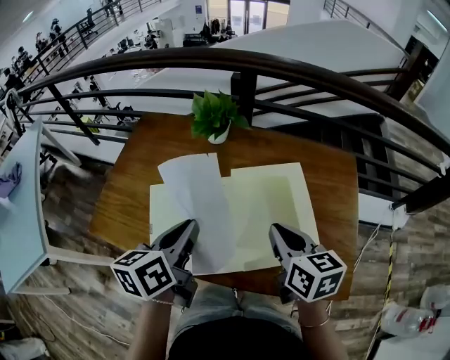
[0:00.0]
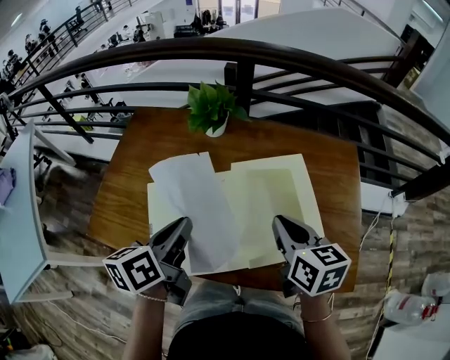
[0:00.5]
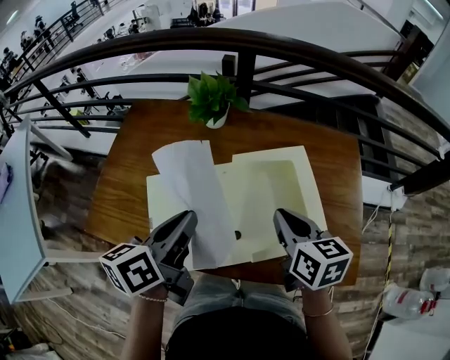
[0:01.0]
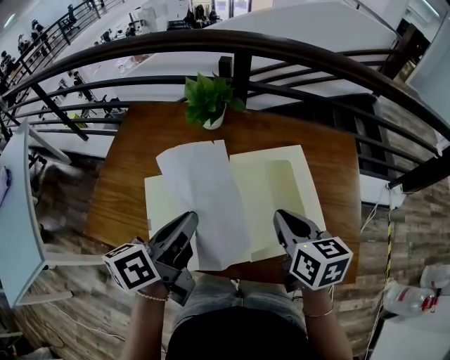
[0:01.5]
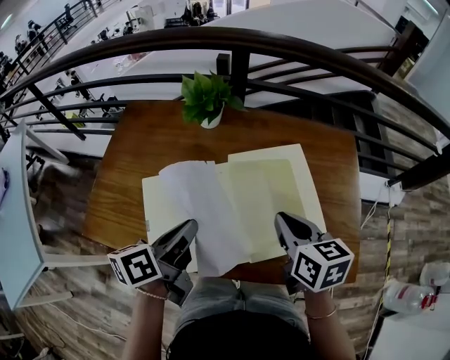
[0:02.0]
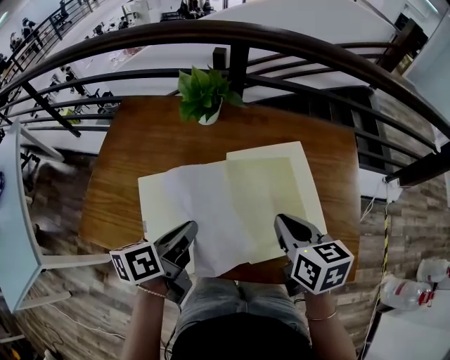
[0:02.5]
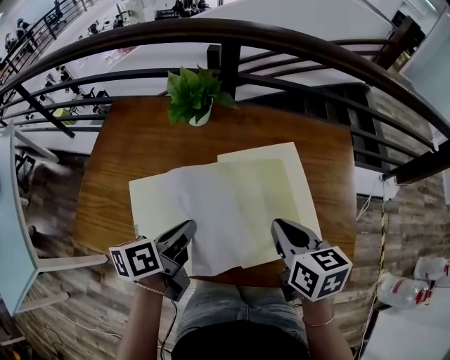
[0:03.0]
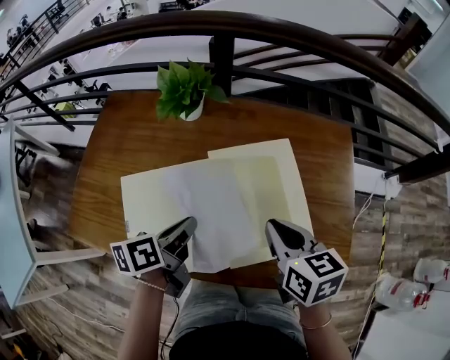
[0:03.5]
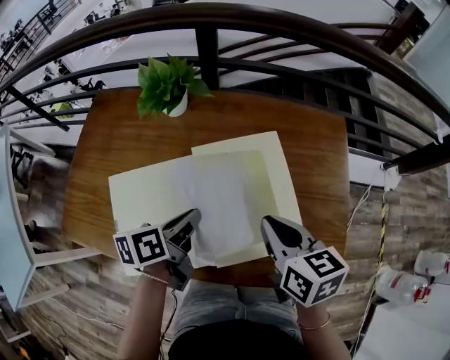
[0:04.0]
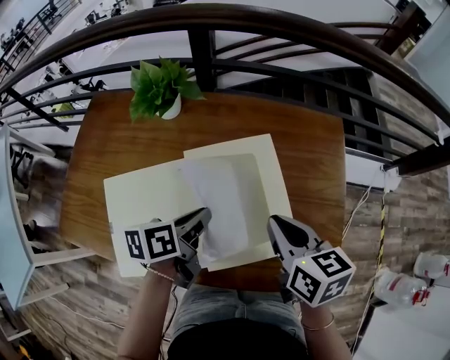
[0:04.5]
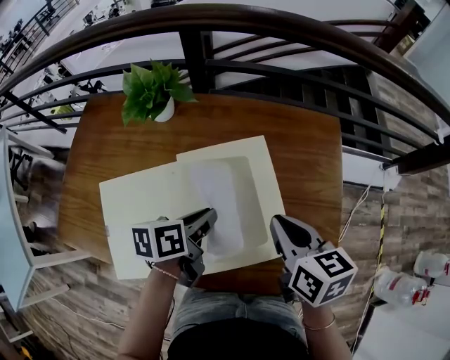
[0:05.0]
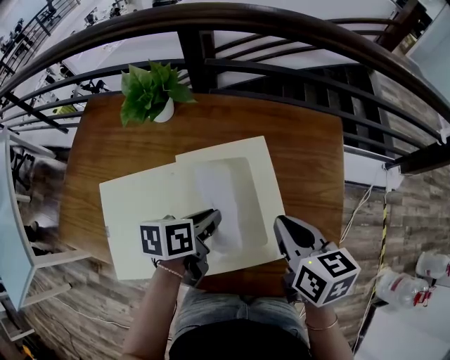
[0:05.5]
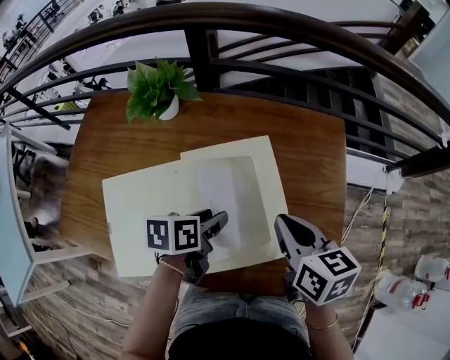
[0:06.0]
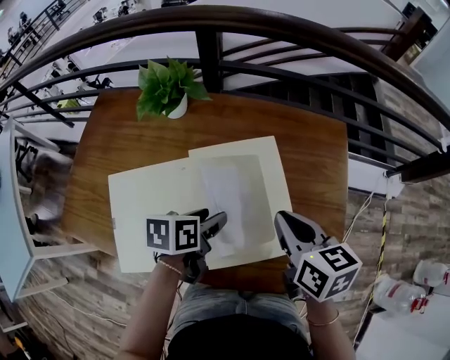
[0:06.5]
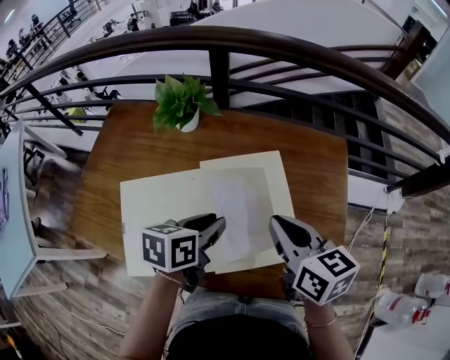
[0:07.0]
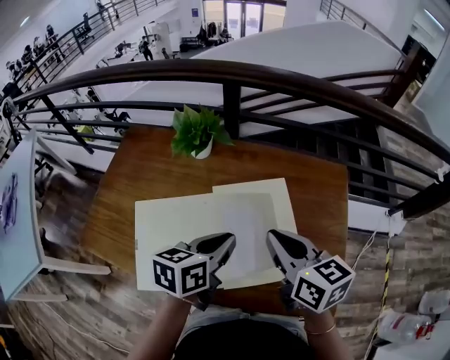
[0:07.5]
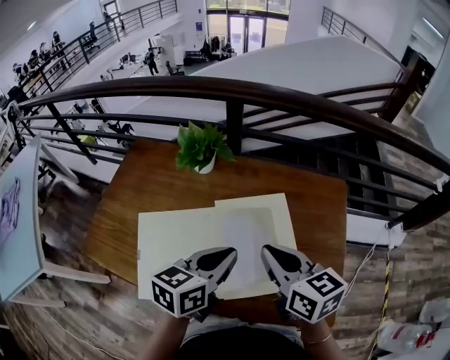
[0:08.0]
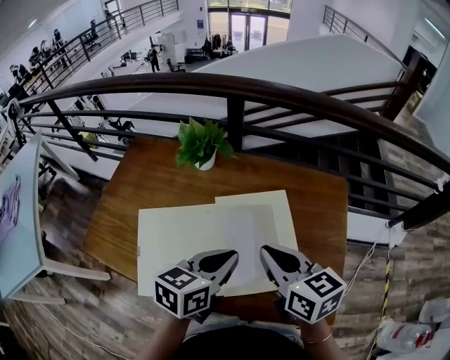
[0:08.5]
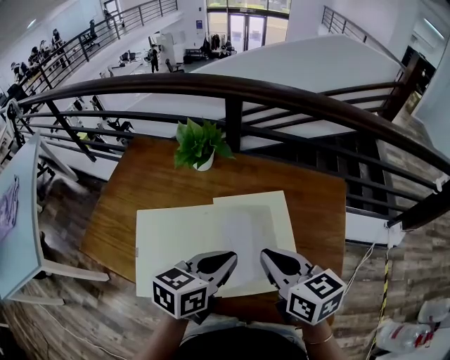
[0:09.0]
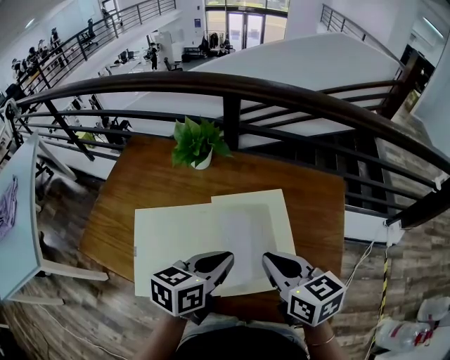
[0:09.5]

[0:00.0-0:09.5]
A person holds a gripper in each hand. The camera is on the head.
0:02.0 to 0:04.0: The right gripper moves to the right, about 5 cm, while the left gripper moves to the right, downward and forward, some 15 cm.
0:04.0 to 0:05.5: Both grippers move to the right, approximately 10 cm.
0:05.5 to 0:07.5: The left gripper goes approximately 10 cm upward, rotates about 20 degrees, and opens, then closes again, while the right gripper is displaced to the left and upward by roughly 10 cm.
0:07.5 to 0:09.5: The grippers move only a little.

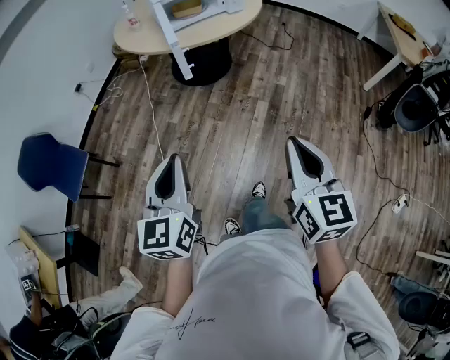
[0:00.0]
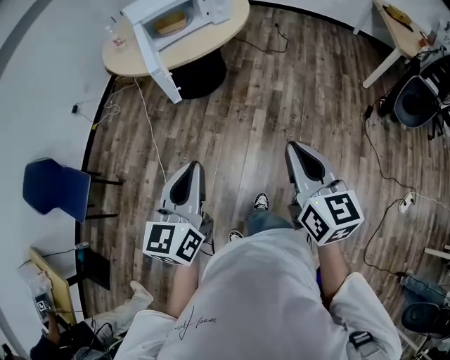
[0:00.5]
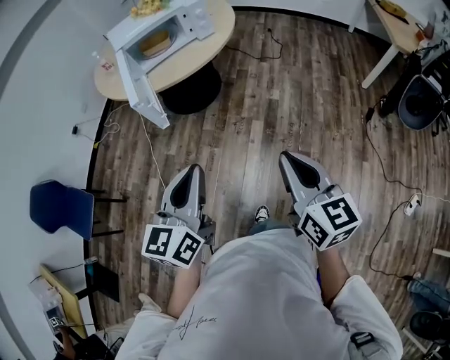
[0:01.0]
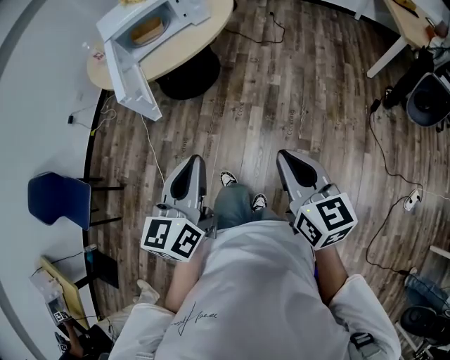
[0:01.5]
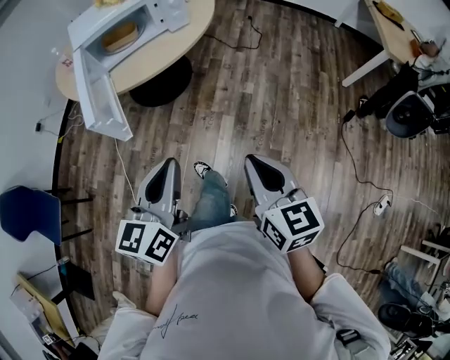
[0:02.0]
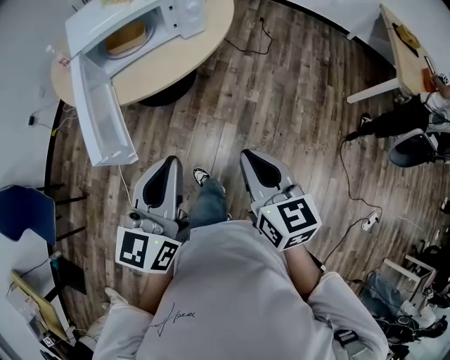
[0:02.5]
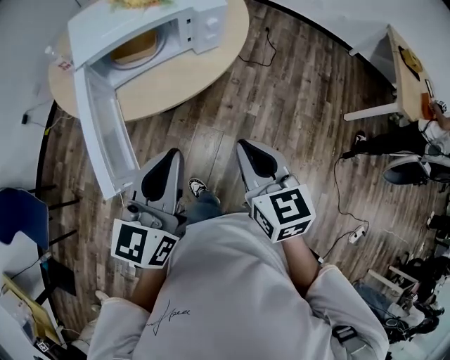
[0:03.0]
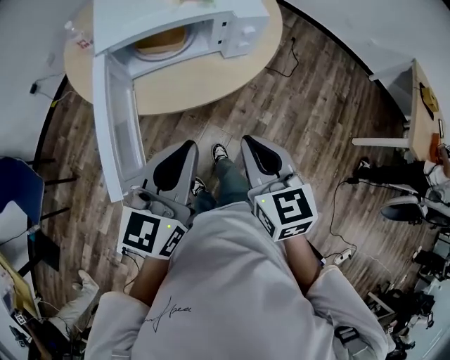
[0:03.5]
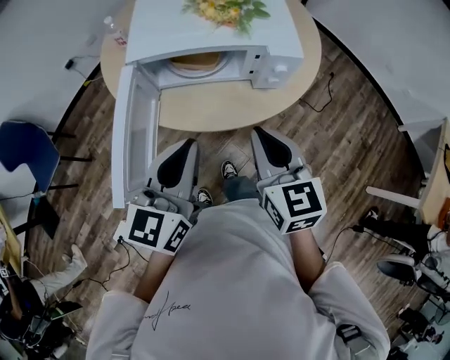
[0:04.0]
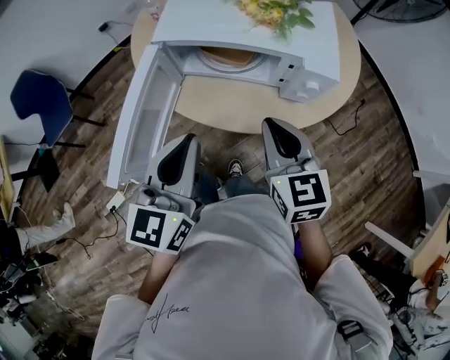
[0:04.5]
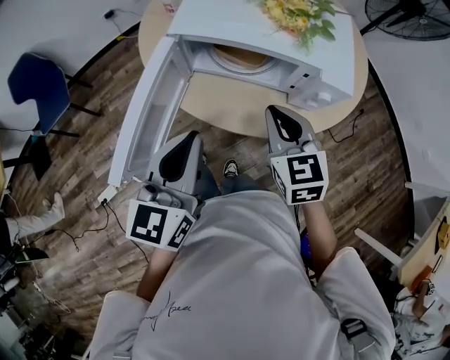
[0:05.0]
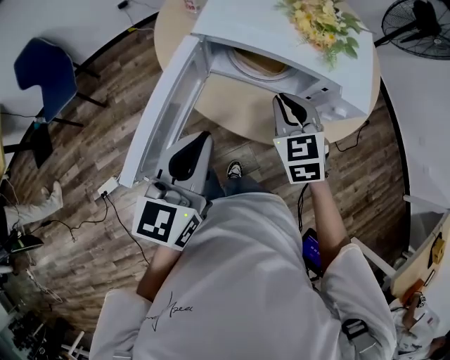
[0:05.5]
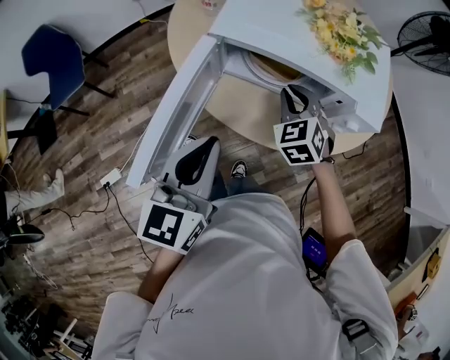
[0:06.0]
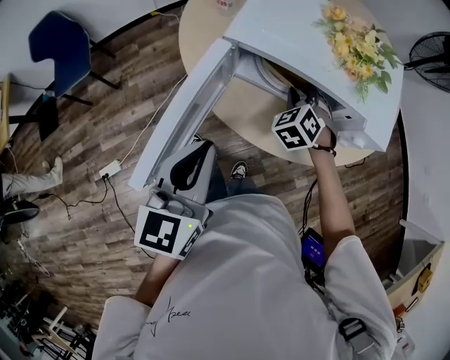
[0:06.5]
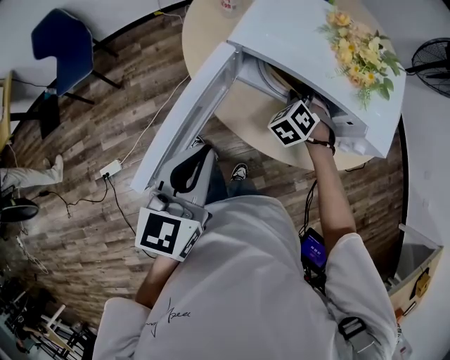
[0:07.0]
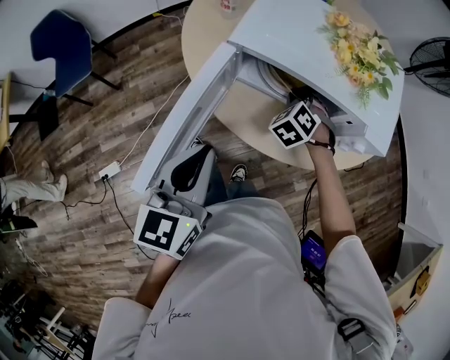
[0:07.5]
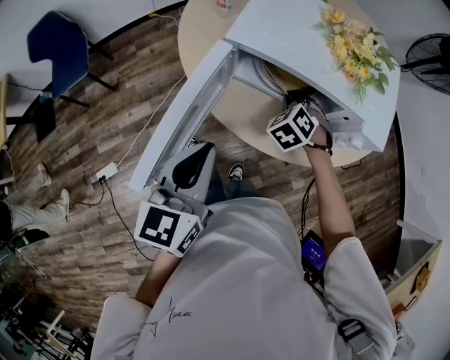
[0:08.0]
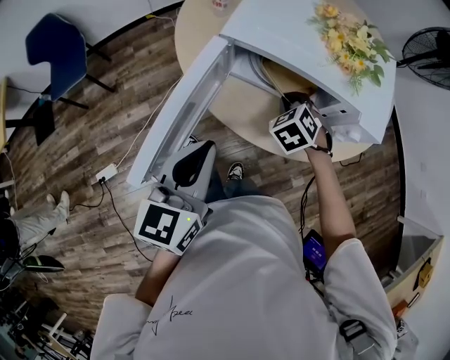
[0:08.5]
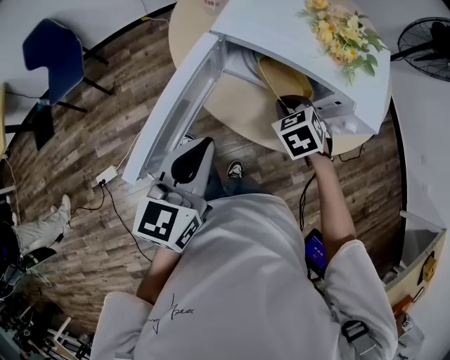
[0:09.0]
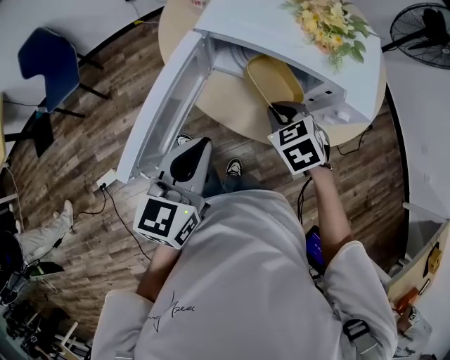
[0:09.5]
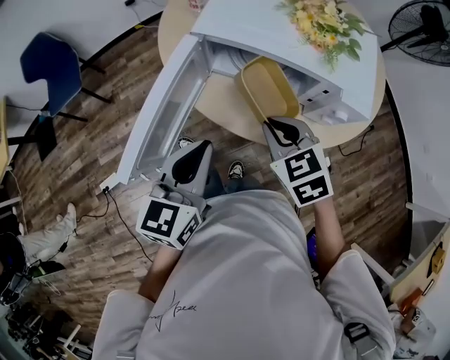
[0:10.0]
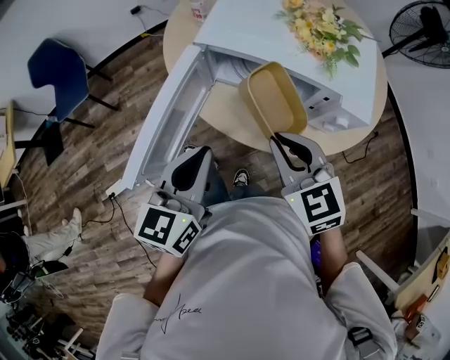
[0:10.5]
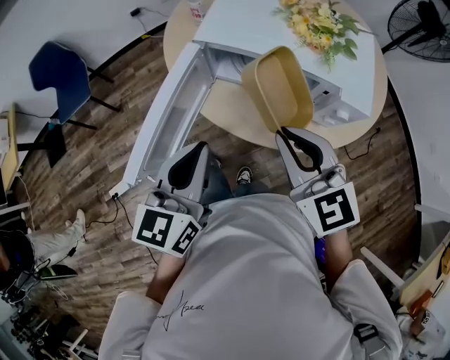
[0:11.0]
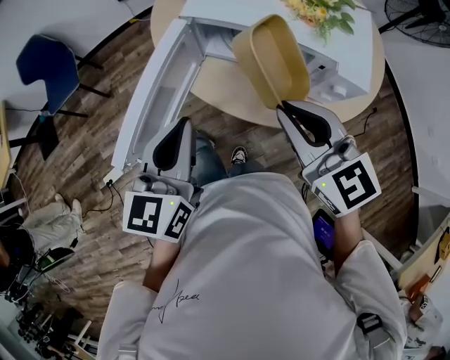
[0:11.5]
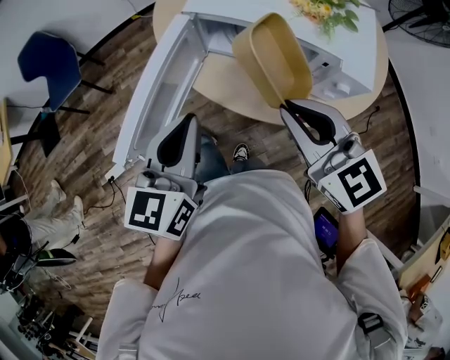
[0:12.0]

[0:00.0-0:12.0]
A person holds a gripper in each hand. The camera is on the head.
0:00.0 to 0:02.0: Both grippers move forward and to the right, roughly 30 cm. The left gripper swivels some 20 degrees.
0:02.0 to 0:04.0: The grippers both shift forward by some 40 cm. The left gripper changes its angle by roughly 20 degrees, while the right gripper rotates about 30 degrees.
0:04.0 to 0:06.0: The right gripper moves forward and downward, about 25 cm, and rotates around the line of its fingers by roughly 40 degrees, counterclockwise from behind. Meanwhile the left gripper shifts about 5 cm to the left, and rotates roughly 20 degrees.
0:06.0 to 0:08.0: The right gripper is displaced downward by about 5 cm, and rotates approximately 20 degrees.
0:08.0 to 0:10.0: The right gripper heads backward and upward, covering about 20 cm, and changes its angle by some 40 degrees. The left gripper changes place by some 5 cm.
0:10.0 to 0:12.0: The right gripper heads upward, covering some 10 cm, and turns by roughly 30 degrees.

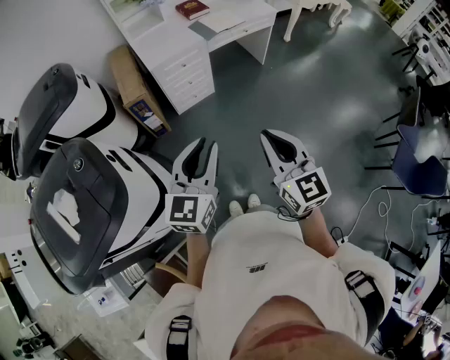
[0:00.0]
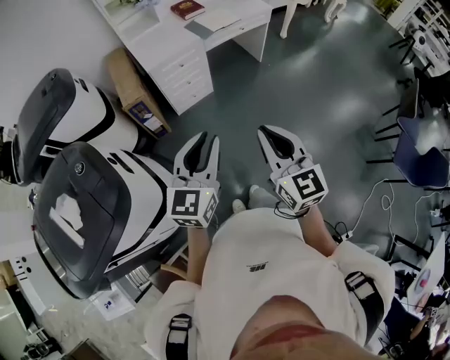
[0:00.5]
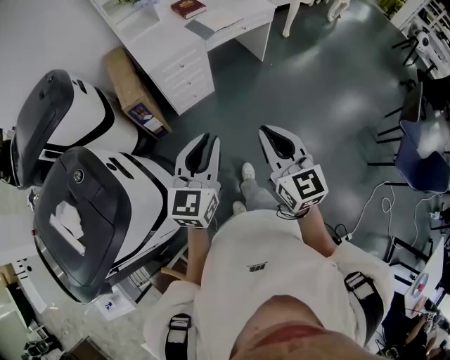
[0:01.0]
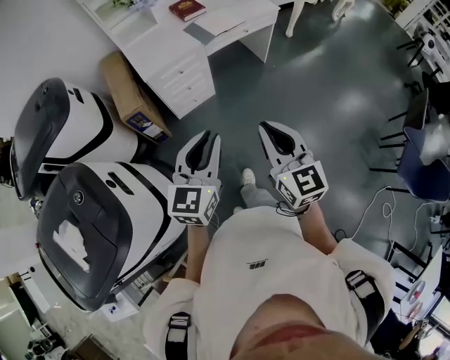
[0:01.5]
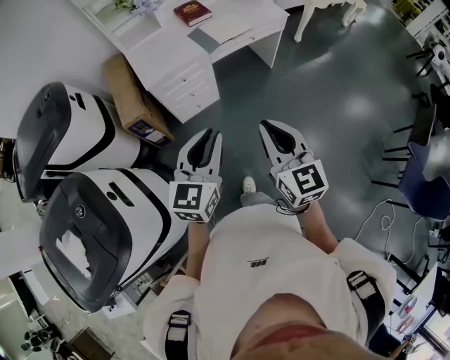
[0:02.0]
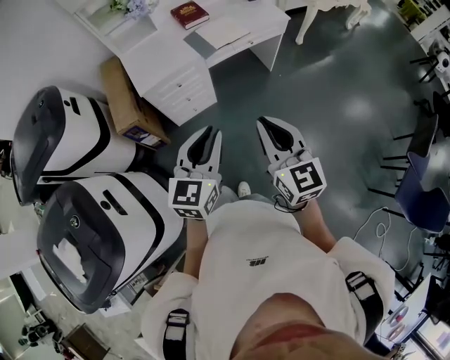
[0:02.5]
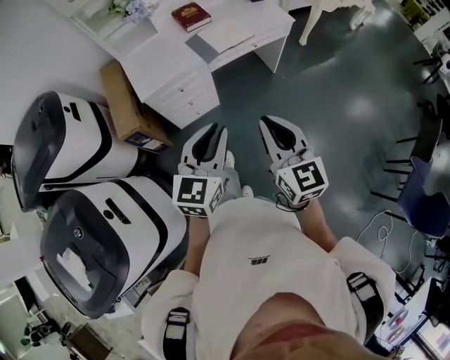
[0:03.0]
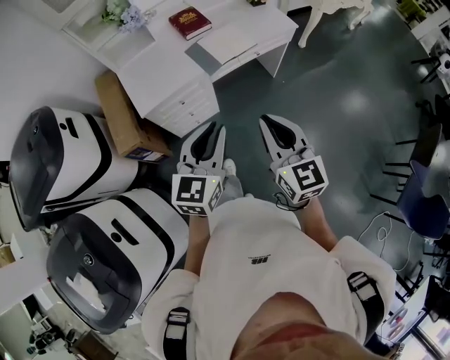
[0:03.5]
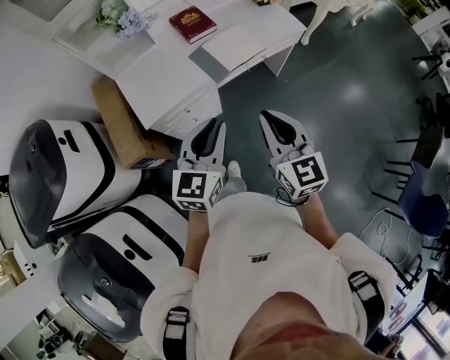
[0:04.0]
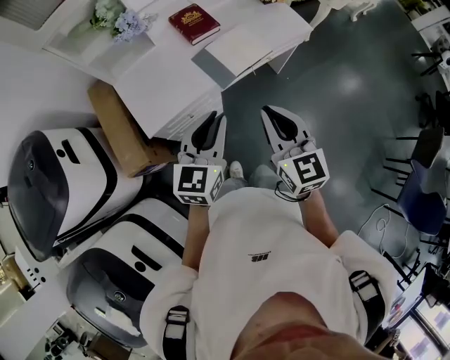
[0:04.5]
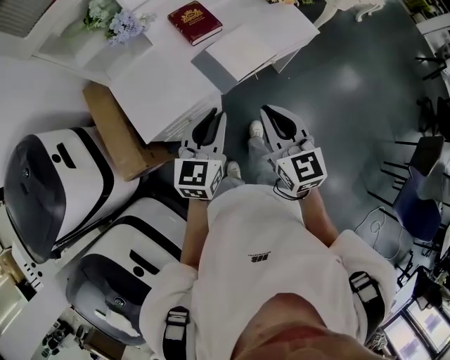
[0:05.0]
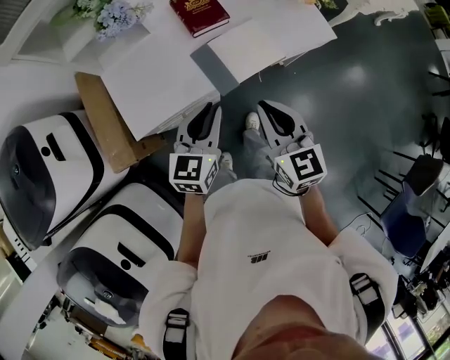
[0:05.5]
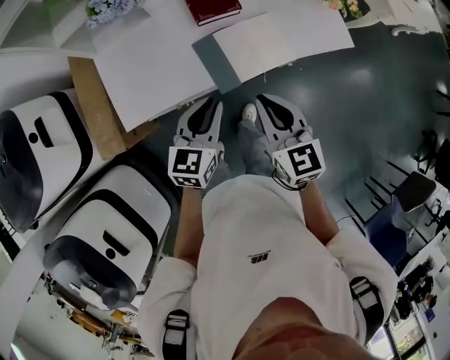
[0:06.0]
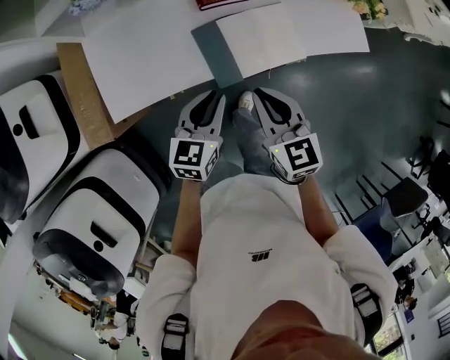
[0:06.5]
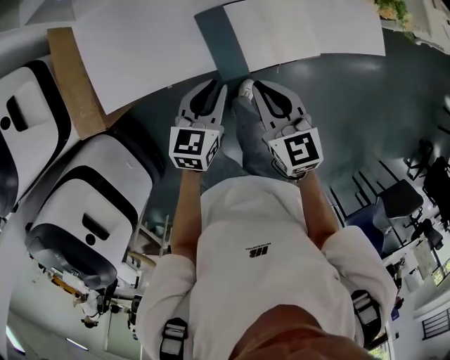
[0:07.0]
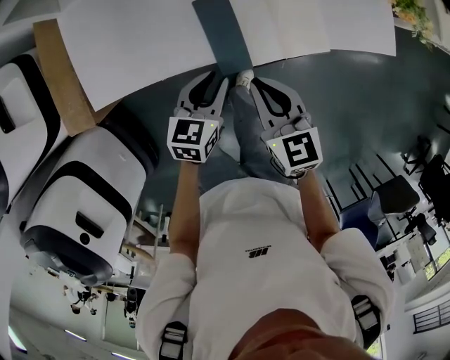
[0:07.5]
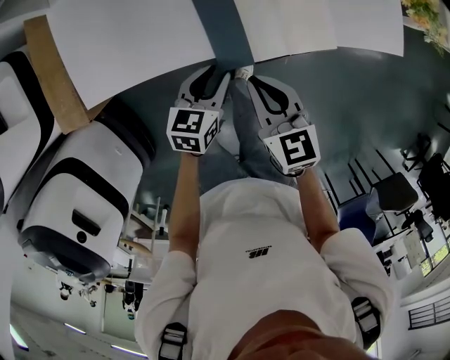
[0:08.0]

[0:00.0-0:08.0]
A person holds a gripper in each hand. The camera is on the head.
0:00.0 to 0:02.0: The two grippers go about 20 cm forward.
0:02.0 to 0:04.0: Both grippers travel together forward, about 30 cm.
0:04.0 to 0:06.0: Both grippers travel together forward and downward, about 30 cm.
0:06.0 to 0:08.0: The grippers both shift downward by approximately 20 cm. The left gripper changes its angle by approximately 20 degrees.
